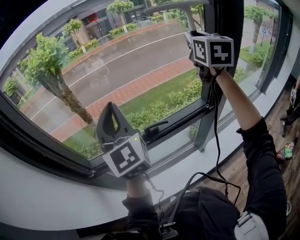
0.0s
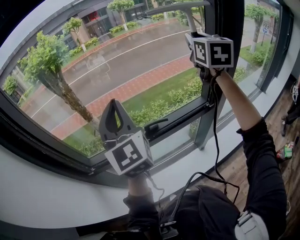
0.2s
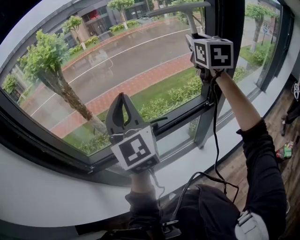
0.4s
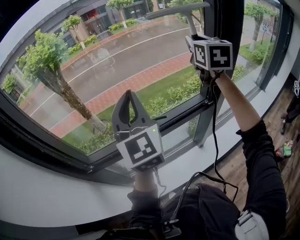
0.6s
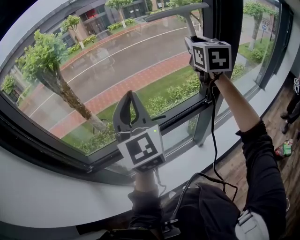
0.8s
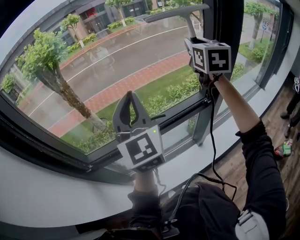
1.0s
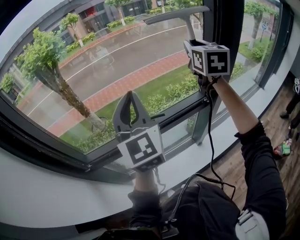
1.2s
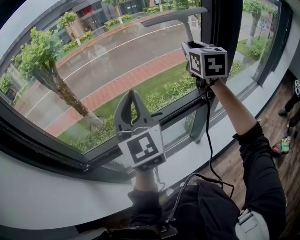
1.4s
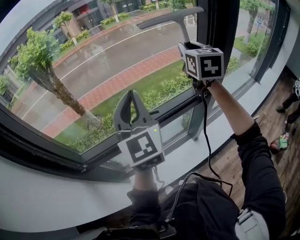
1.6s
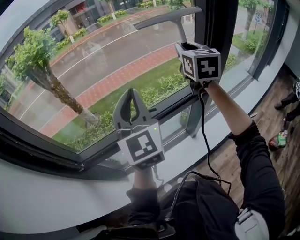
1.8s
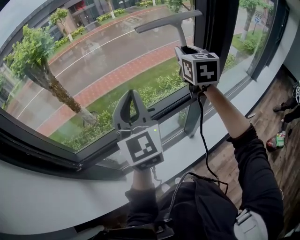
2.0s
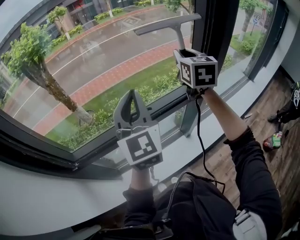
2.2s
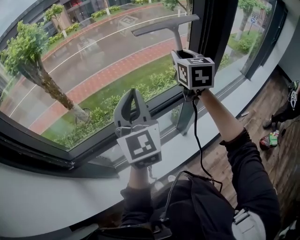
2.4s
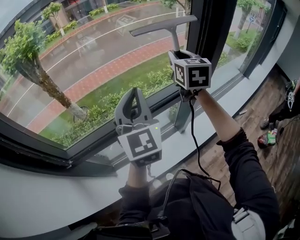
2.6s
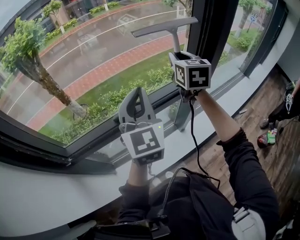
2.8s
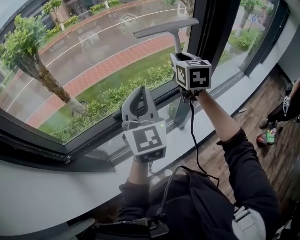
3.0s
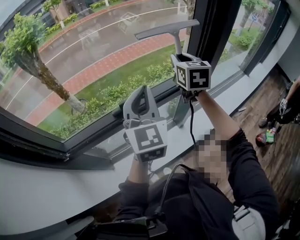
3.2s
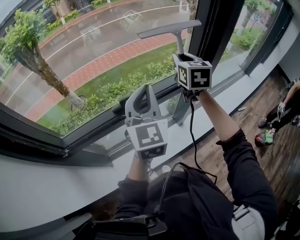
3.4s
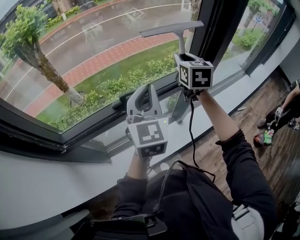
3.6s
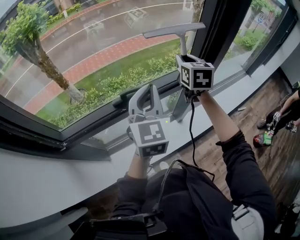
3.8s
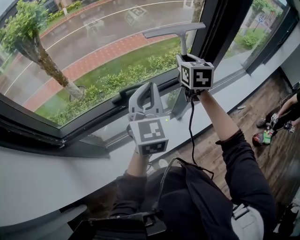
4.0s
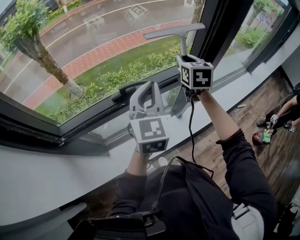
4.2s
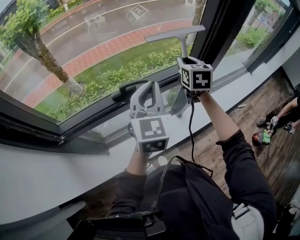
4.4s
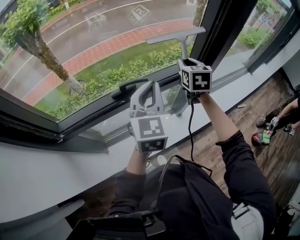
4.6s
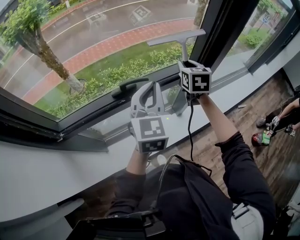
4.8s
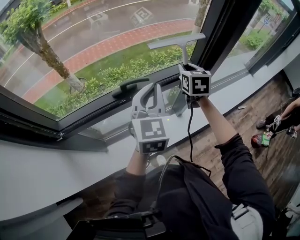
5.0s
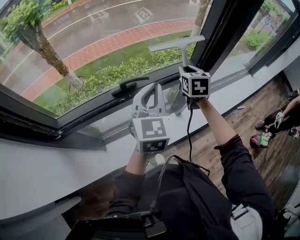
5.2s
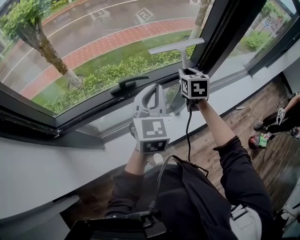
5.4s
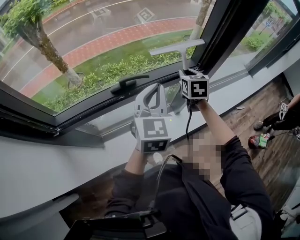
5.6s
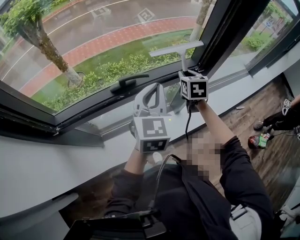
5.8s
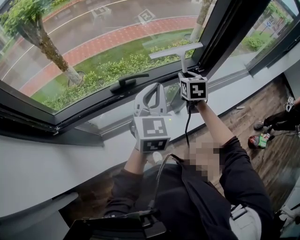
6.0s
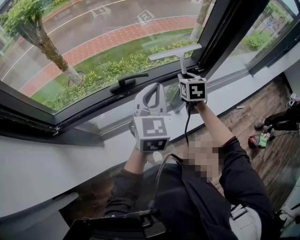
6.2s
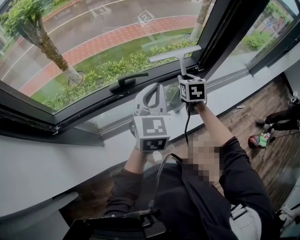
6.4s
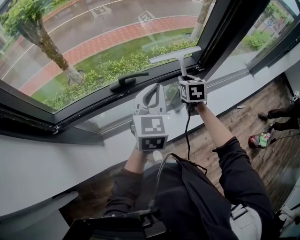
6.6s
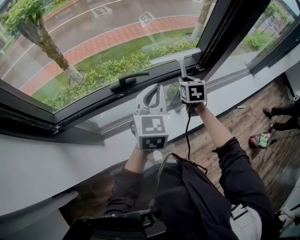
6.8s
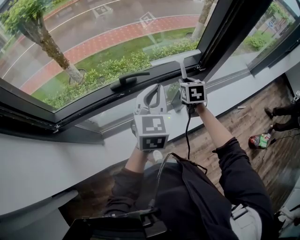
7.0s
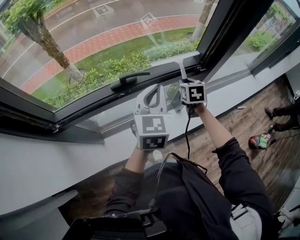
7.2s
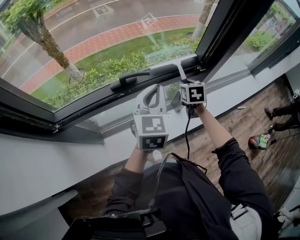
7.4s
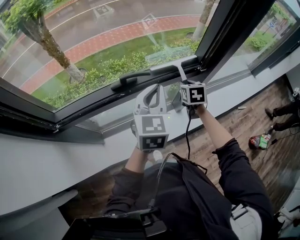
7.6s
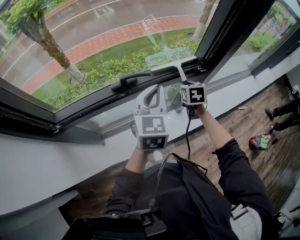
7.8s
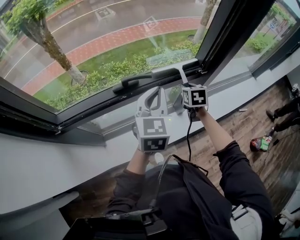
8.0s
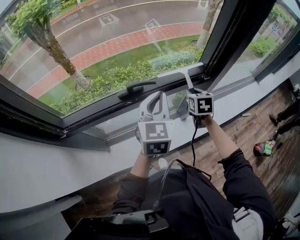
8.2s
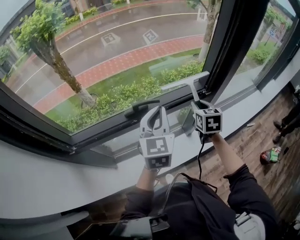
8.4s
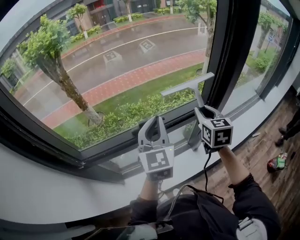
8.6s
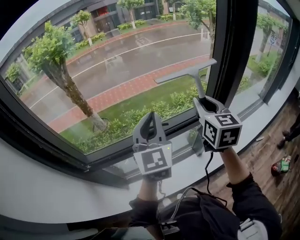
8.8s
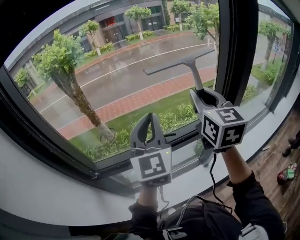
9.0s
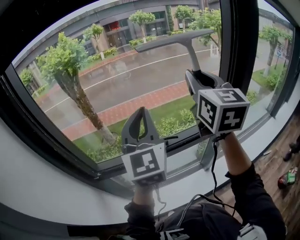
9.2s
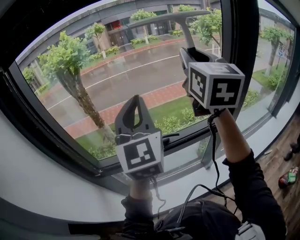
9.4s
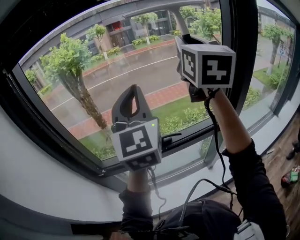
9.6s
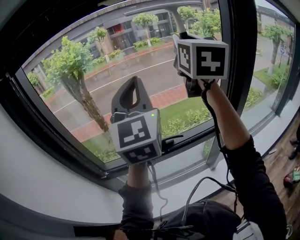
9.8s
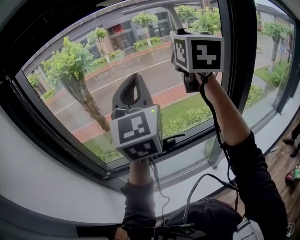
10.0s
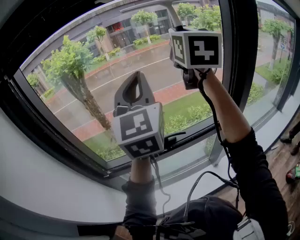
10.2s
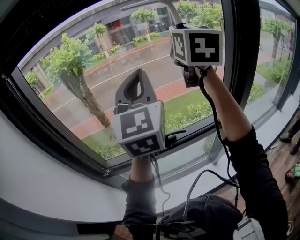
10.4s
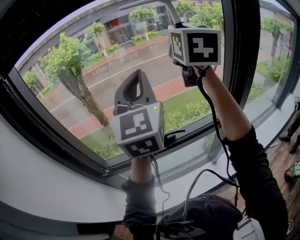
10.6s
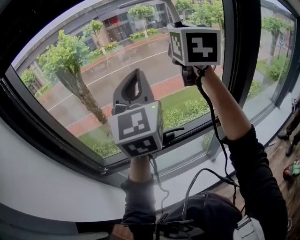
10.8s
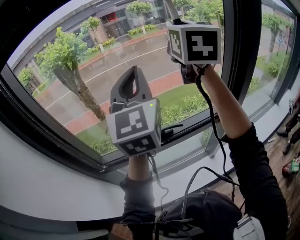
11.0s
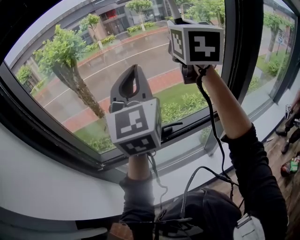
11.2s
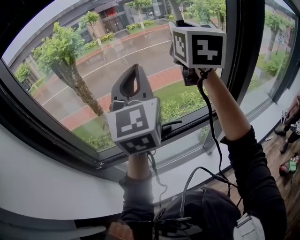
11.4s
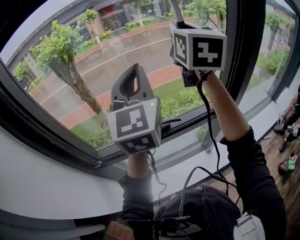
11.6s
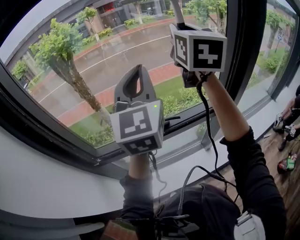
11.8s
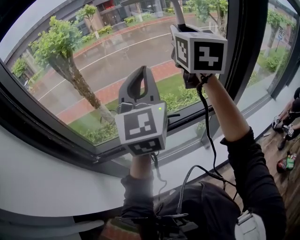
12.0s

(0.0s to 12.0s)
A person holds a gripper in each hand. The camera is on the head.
0.0s - 1.6s: The right gripper is displaced downward by roughly 10 cm. The left gripper heads to the right, covering about 10 cm.
1.6s - 3.0s: The left gripper shifts about 10 cm downward and to the right; the right gripper is displaced downward by some 10 cm.
3.0s - 4.4s: The left gripper goes about 5 cm downward. The right gripper goes approximately 10 cm downward.
4.4s - 6.0s: The right gripper heads downward, covering approximately 10 cm.
6.0s - 7.6s: The right gripper shifts approximately 5 cm downward.
7.6s - 9.0s: The left gripper heads upward and to the left, covering about 20 cm, and swivels about 30 degrees. Meanwhile the right gripper travels upward by some 35 cm, and tilts its fingers some 40 degrees upward.
9.0s - 10.4s: The grippers both shift upward by approximately 20 cm.
10.4s - 12.0s: The two grippers go about 10 cm downward.

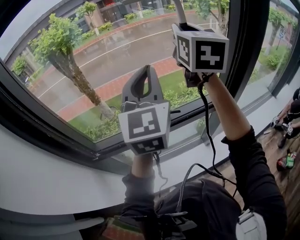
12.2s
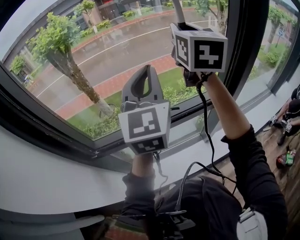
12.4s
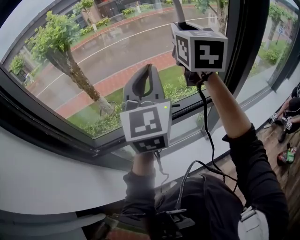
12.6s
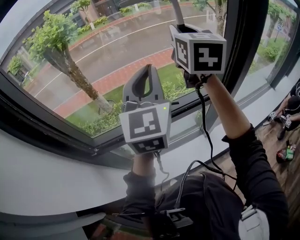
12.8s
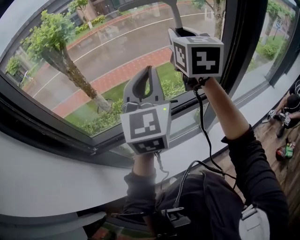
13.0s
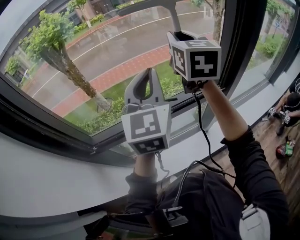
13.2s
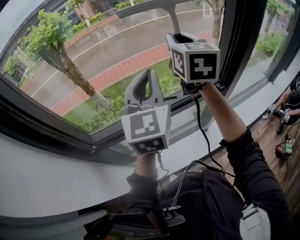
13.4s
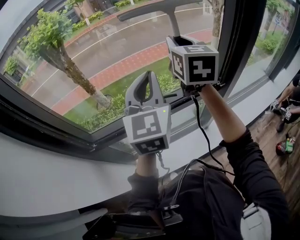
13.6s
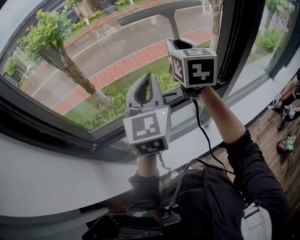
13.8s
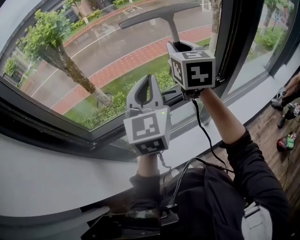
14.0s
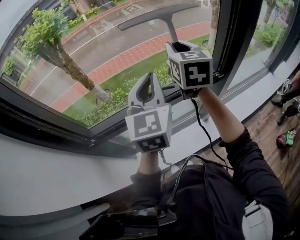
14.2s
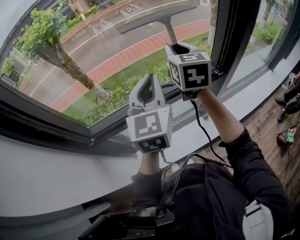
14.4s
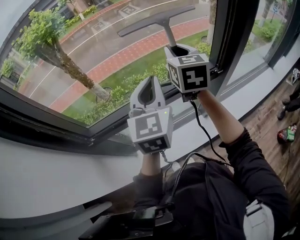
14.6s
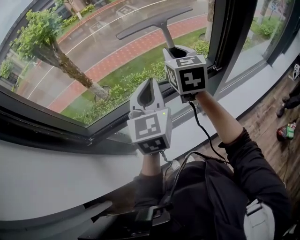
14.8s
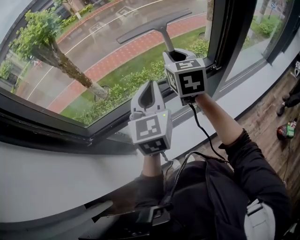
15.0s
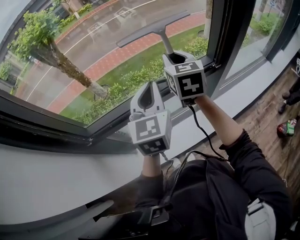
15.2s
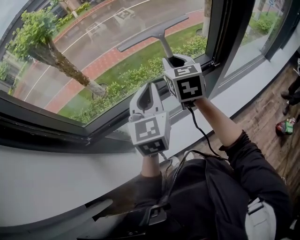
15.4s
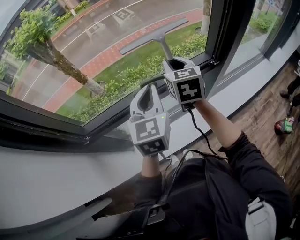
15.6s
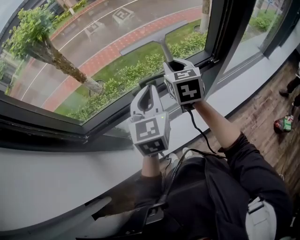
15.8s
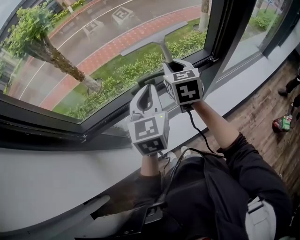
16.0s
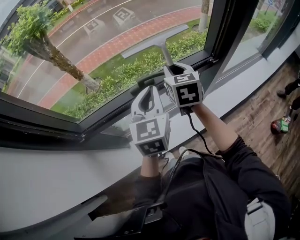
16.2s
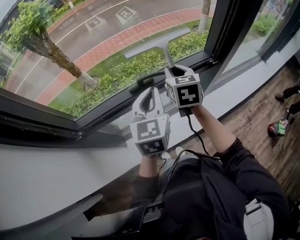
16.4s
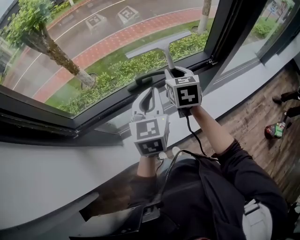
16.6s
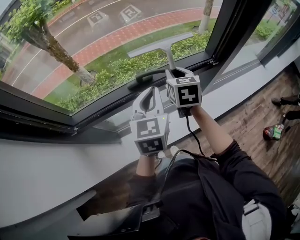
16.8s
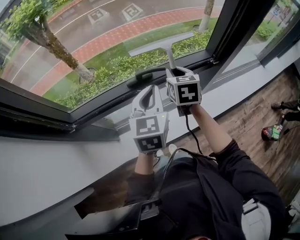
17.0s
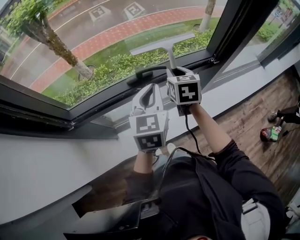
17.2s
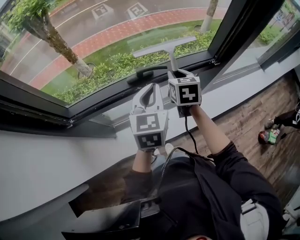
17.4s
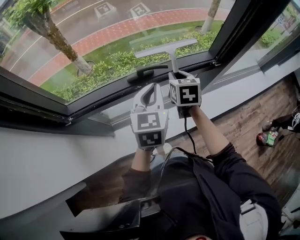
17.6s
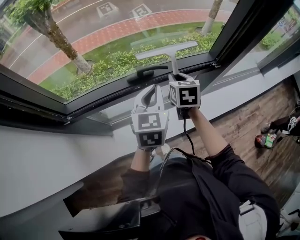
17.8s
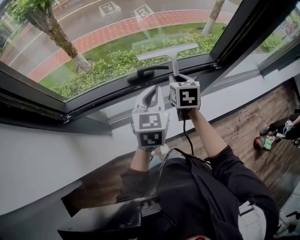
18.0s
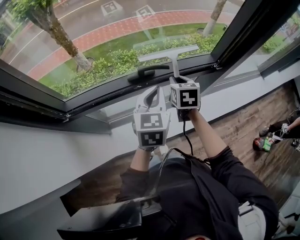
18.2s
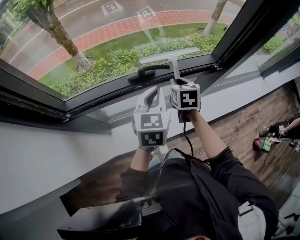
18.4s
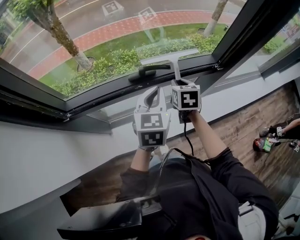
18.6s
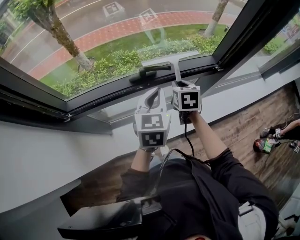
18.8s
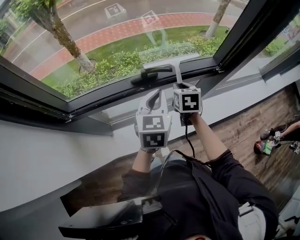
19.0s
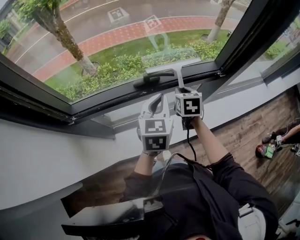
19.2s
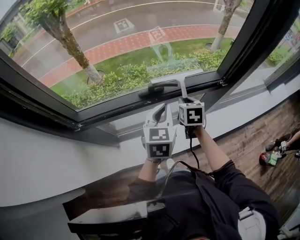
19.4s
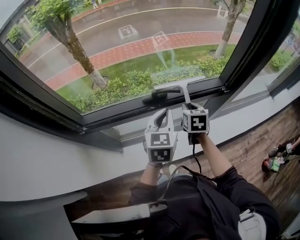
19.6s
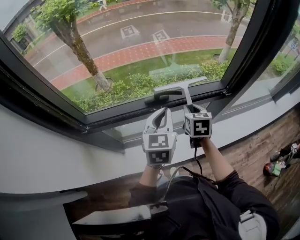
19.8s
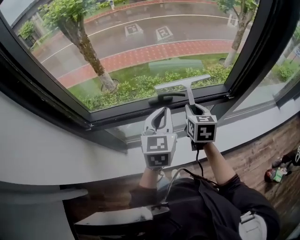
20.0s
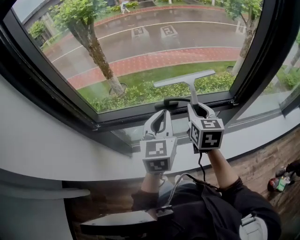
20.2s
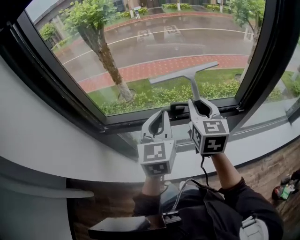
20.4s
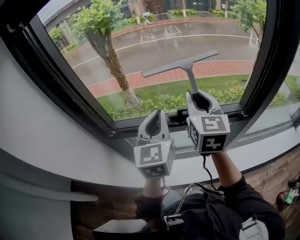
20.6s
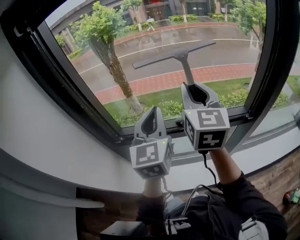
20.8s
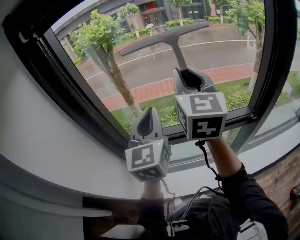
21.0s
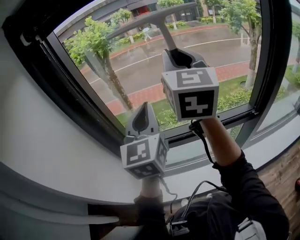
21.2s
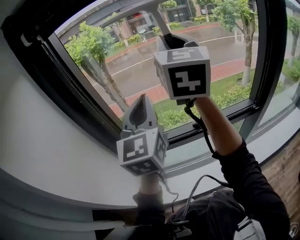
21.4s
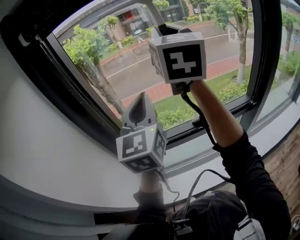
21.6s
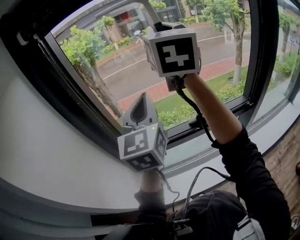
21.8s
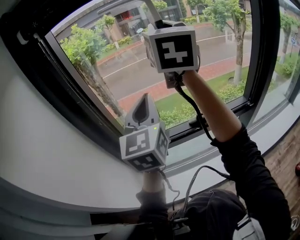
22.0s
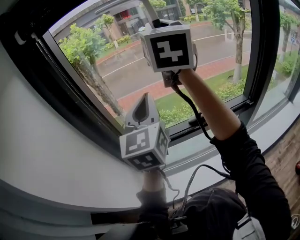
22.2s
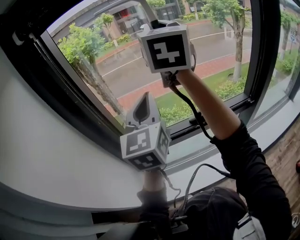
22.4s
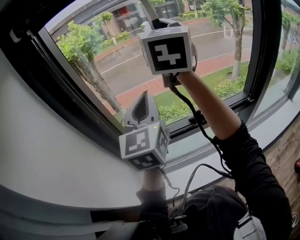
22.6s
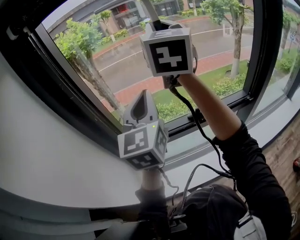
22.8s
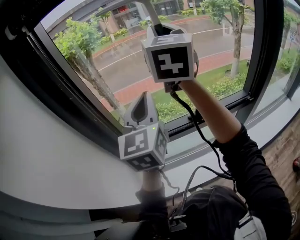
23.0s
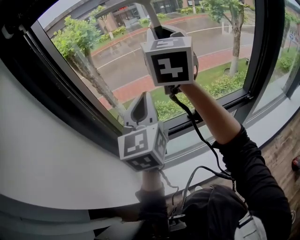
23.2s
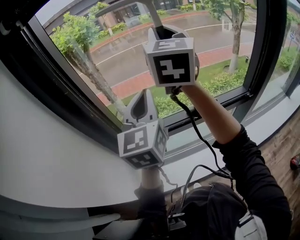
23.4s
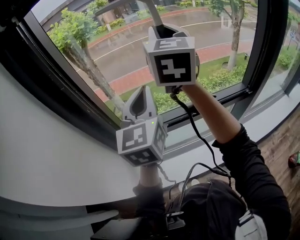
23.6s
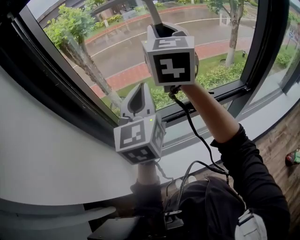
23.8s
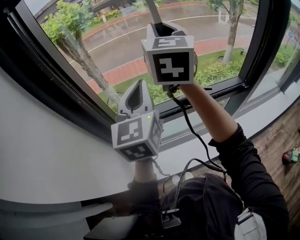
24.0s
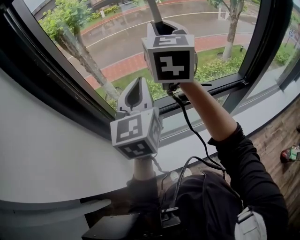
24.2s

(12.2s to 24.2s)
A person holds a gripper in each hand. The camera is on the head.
12.2s - 13.8s: The two grippers go about 10 cm downward.
13.8s - 15.2s: The grippers both shift downward by approximately 10 cm.
15.2s - 16.6s: The right gripper shifts approximately 10 cm downward, while the left gripper is displaced downward by roughly 5 cm.
16.6s - 18.2s: The right gripper heads downward, covering roughly 10 cm.
18.2s - 19.8s: The grippers stay close to where they were, moving slightly.
19.8s - 21.2s: The left gripper is displaced upward and to the left by about 35 cm, and turns by some 30 degrees; the right gripper travels upward and to the left by approximately 50 cm, and angles its fingers upward, by some 50 degrees.
21.2s - 22.6s: The right gripper goes some 5 cm upward.
22.6s - 24.2s: The right gripper heads downward, covering some 10 cm; the left gripper is displaced downward by roughly 5 cm.
